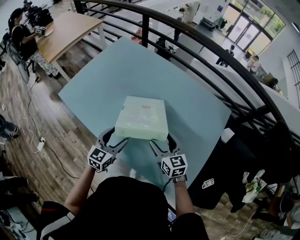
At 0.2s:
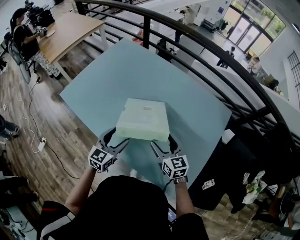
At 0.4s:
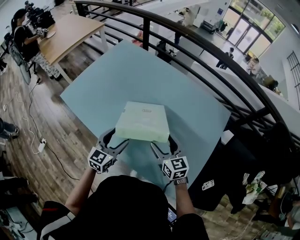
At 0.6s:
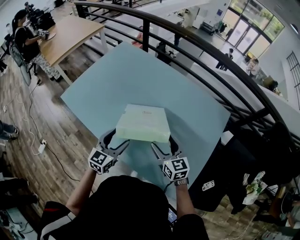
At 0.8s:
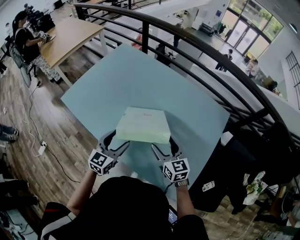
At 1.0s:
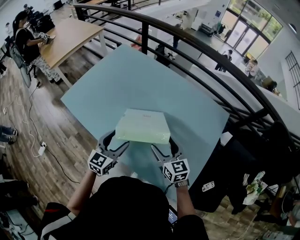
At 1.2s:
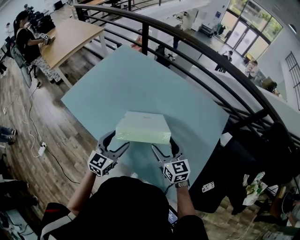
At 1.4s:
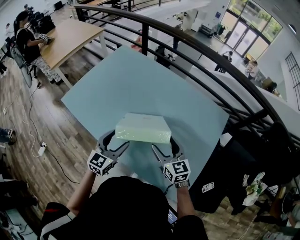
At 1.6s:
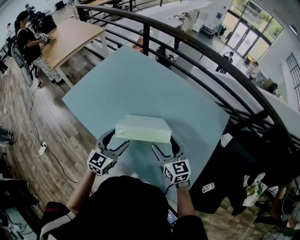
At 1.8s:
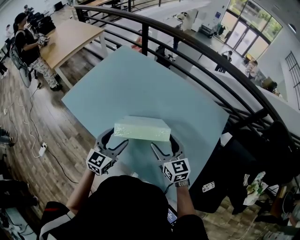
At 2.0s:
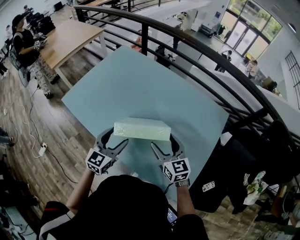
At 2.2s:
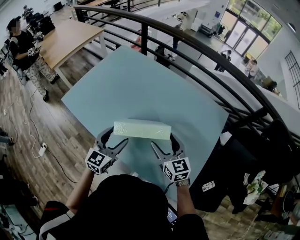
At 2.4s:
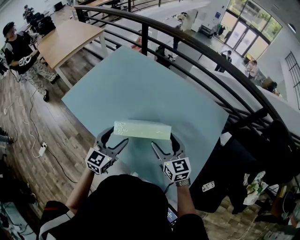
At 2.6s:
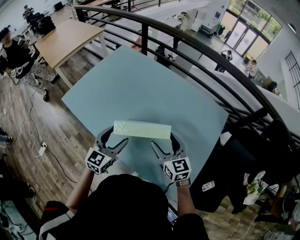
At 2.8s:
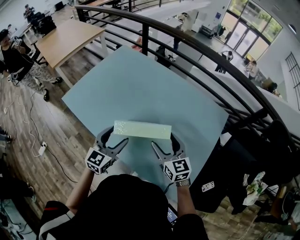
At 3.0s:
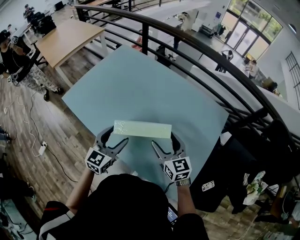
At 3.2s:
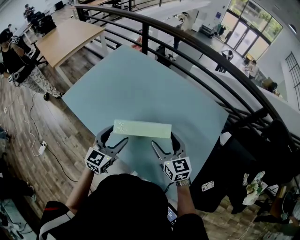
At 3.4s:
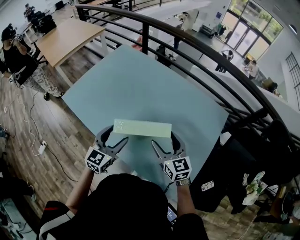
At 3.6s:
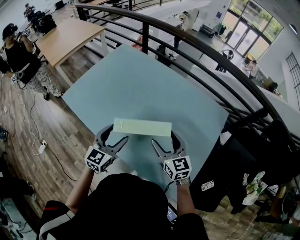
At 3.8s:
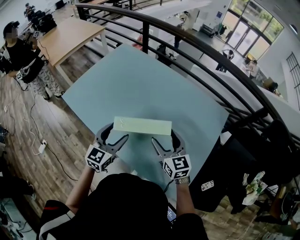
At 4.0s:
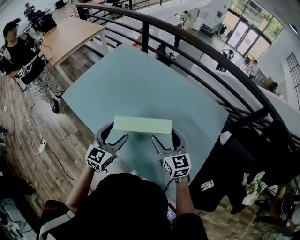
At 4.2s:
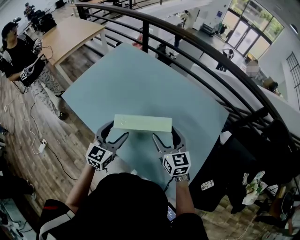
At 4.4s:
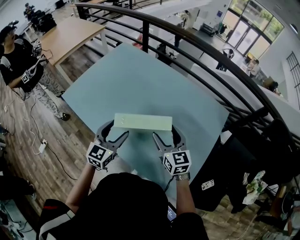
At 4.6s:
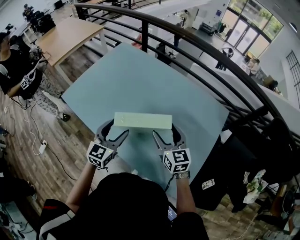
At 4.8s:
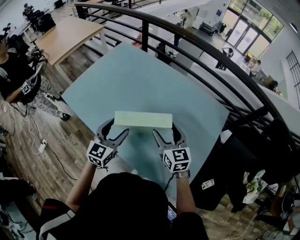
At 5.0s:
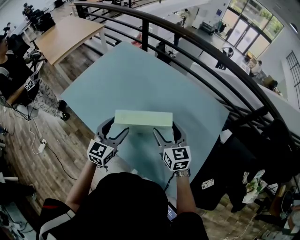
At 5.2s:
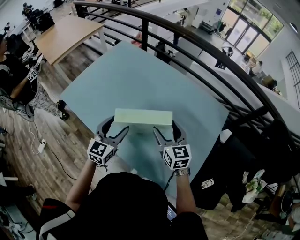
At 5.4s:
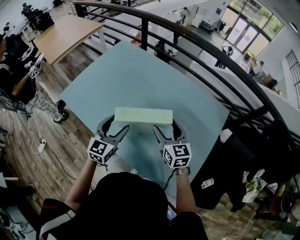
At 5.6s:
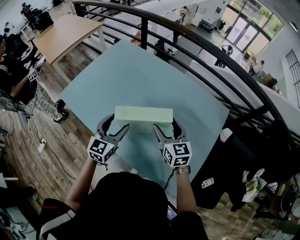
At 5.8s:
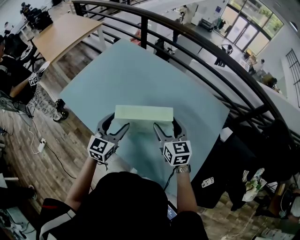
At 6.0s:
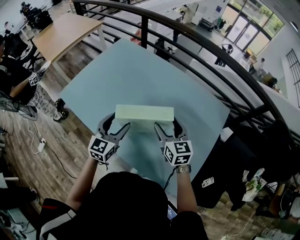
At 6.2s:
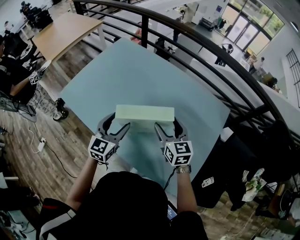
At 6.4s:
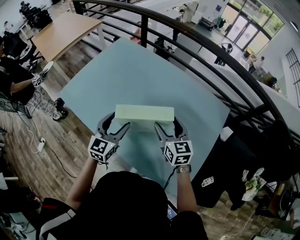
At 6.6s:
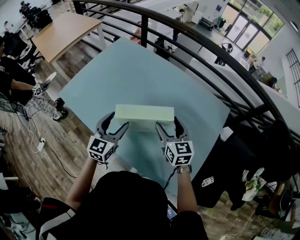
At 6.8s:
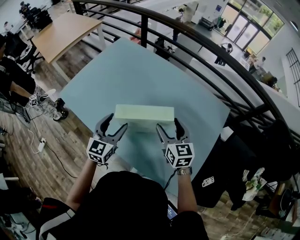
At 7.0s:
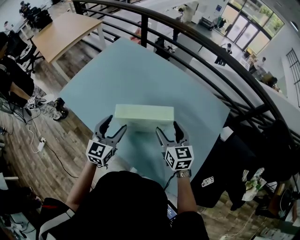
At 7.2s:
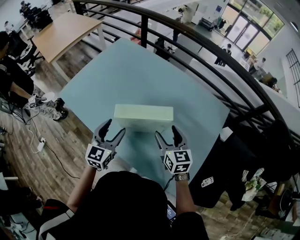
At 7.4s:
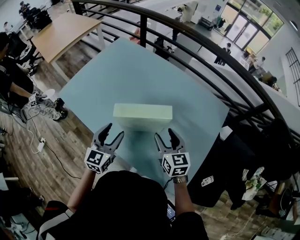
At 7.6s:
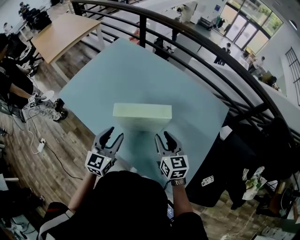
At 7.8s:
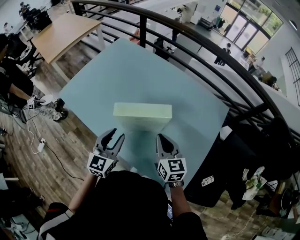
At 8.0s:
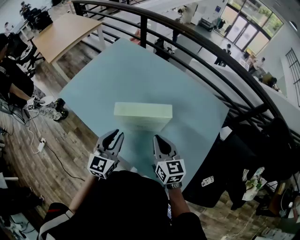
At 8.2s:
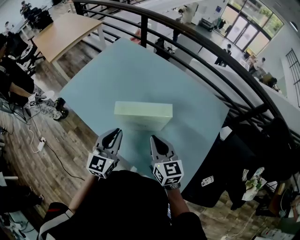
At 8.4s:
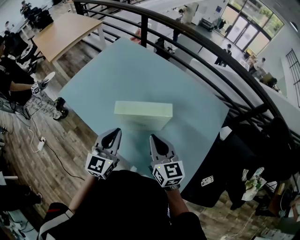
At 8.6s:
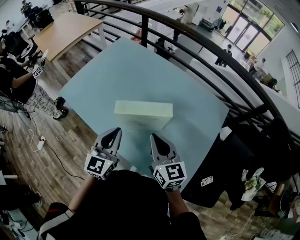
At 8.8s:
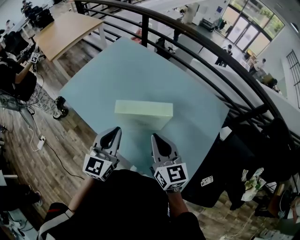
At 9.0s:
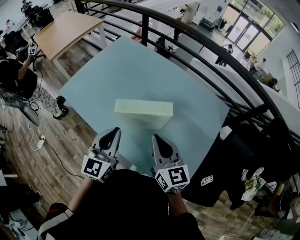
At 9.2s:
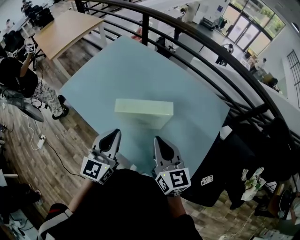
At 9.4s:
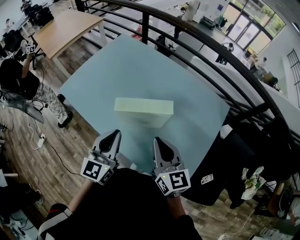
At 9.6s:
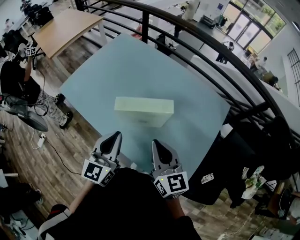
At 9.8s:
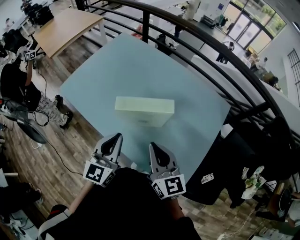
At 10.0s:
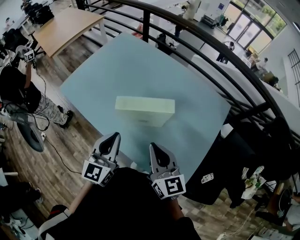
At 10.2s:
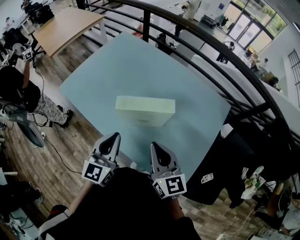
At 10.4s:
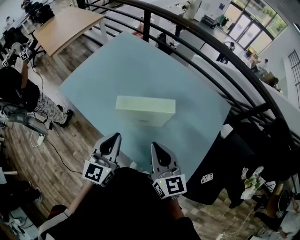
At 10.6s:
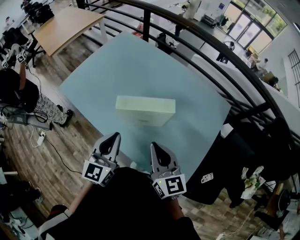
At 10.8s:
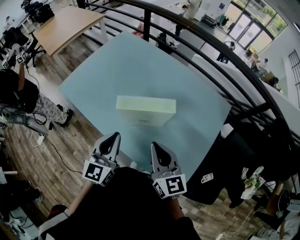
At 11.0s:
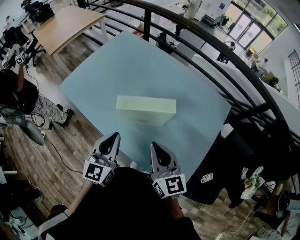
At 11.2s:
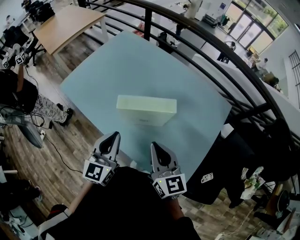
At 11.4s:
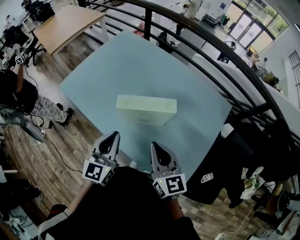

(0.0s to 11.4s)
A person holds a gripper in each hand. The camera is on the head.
0.0s - 1.4s: Both grippers move upward, about 5 cm.
1.4s - 4.2s: The grippers stay close to where they were, moving slightly.
4.2s - 7.2s: The grippers move only a little.
7.2s - 8.6s: The left gripper moves upward, about 5 cm, and closes. The right gripper goes approximately 10 cm upward, to the left and backward, and closes up.
8.6s - 10.0s: The grippers make only small movements.
10.0s - 11.4s: Both grippers stay put.

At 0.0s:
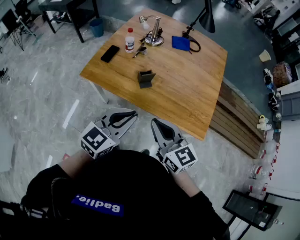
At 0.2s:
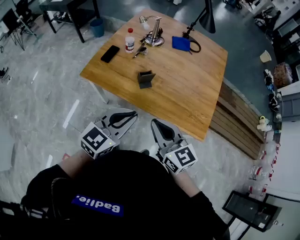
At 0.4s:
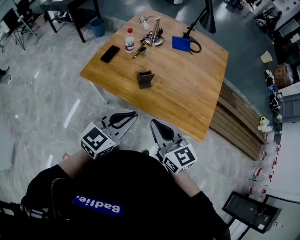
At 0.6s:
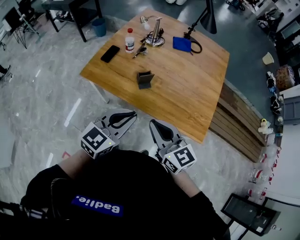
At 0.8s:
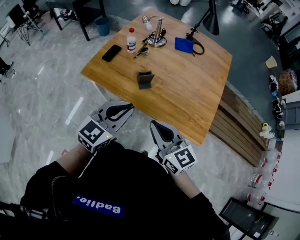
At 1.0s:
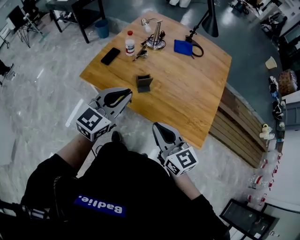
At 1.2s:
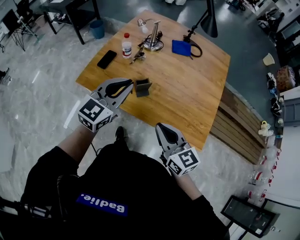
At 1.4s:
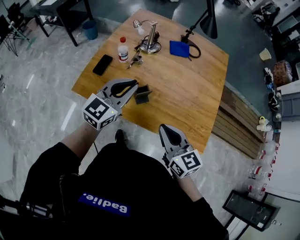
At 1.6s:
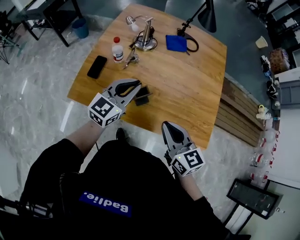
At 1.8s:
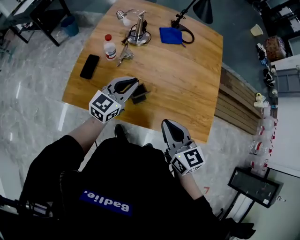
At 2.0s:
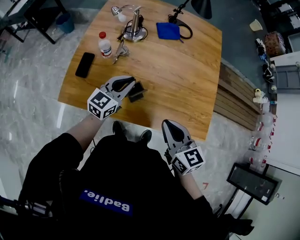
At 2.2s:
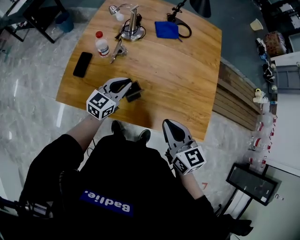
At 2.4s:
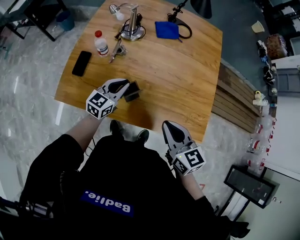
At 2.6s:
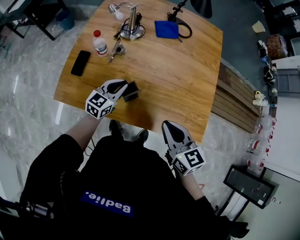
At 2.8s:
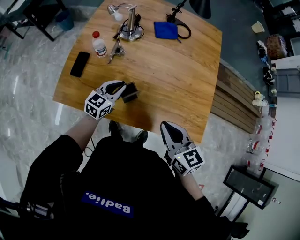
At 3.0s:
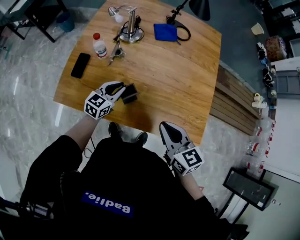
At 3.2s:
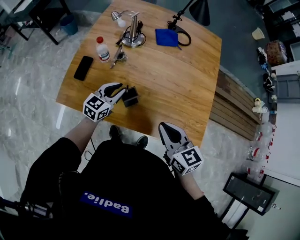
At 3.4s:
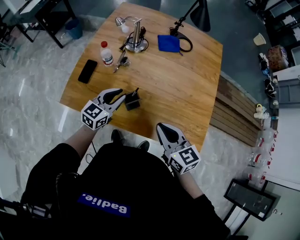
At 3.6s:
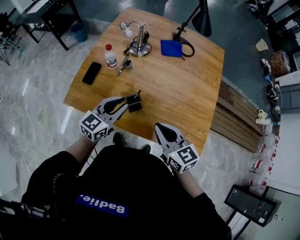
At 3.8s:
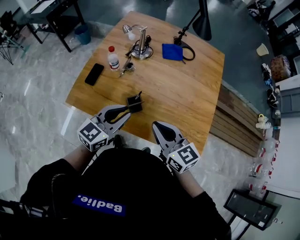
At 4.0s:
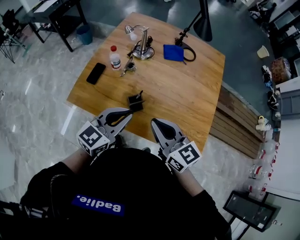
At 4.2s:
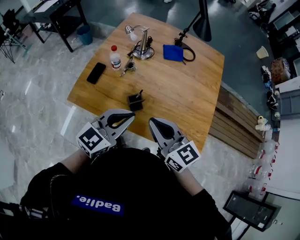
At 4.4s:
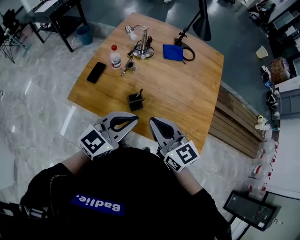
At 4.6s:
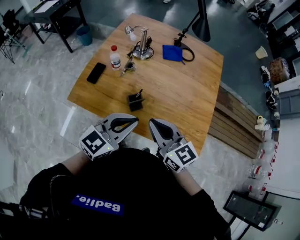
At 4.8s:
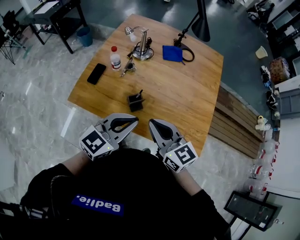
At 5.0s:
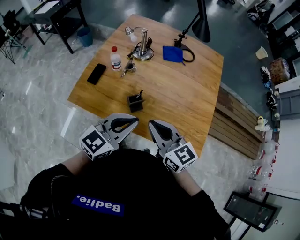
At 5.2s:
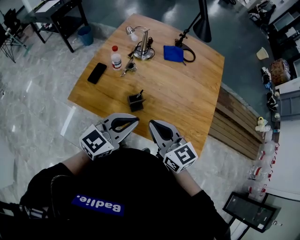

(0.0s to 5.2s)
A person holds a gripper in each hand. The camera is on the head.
0.0s - 1.8s: The left gripper travels forward by about 30 cm. Meanwhile the right gripper heads forward, covering roughly 15 cm, and turns by about 20 degrees.
1.8s - 3.4s: The left gripper moves downward, some 5 cm.
3.4s - 5.2s: The left gripper is displaced upward, backward and to the right by about 20 cm, while the right gripper is displaced upward by some 5 cm.

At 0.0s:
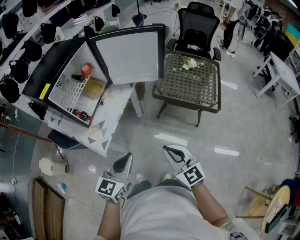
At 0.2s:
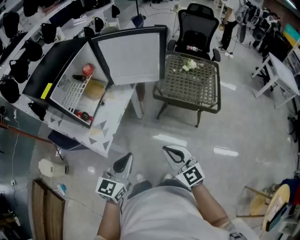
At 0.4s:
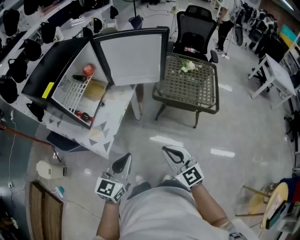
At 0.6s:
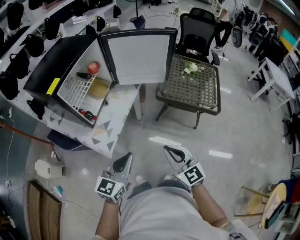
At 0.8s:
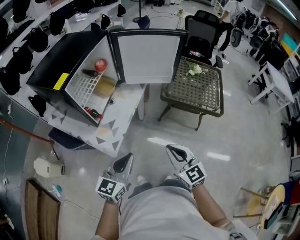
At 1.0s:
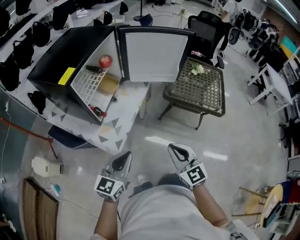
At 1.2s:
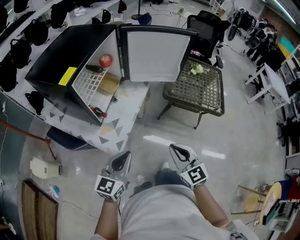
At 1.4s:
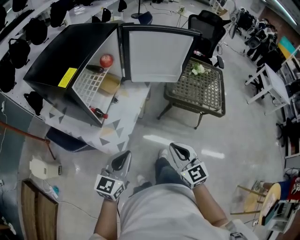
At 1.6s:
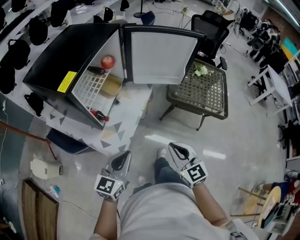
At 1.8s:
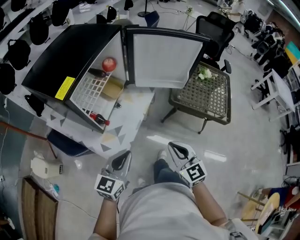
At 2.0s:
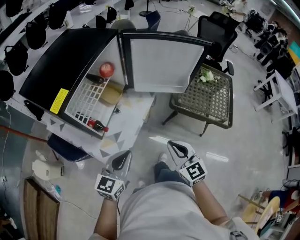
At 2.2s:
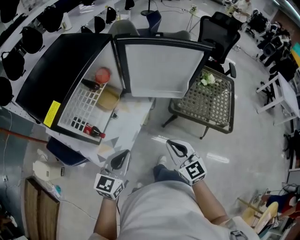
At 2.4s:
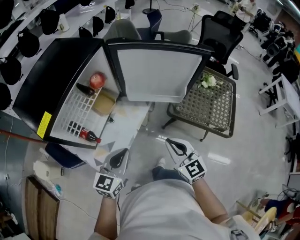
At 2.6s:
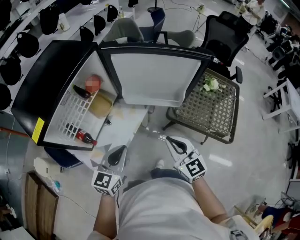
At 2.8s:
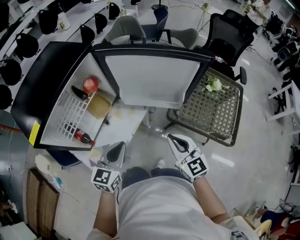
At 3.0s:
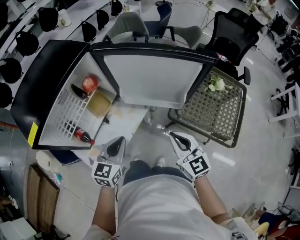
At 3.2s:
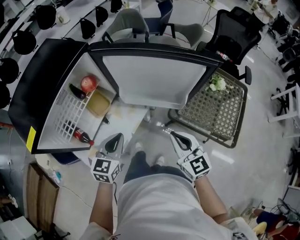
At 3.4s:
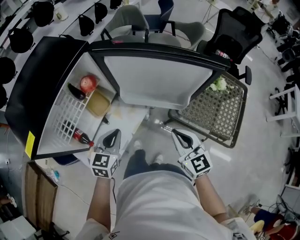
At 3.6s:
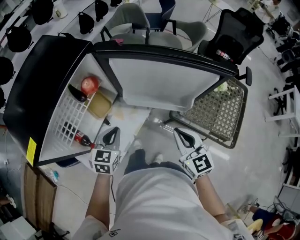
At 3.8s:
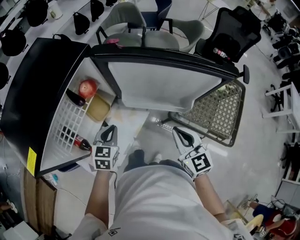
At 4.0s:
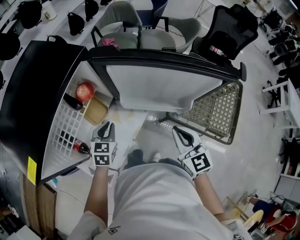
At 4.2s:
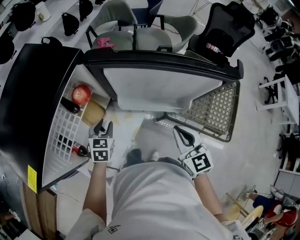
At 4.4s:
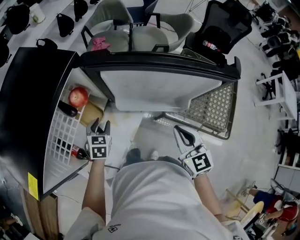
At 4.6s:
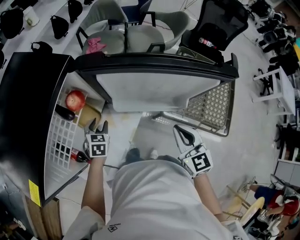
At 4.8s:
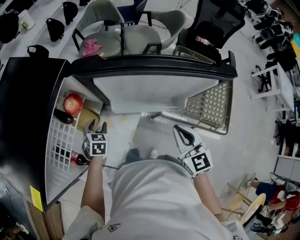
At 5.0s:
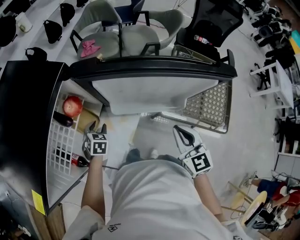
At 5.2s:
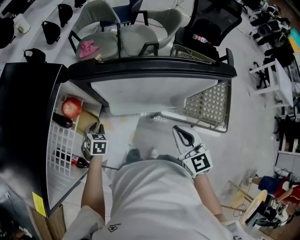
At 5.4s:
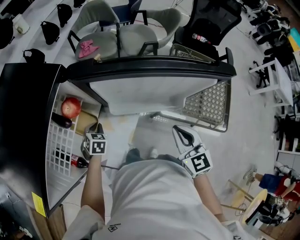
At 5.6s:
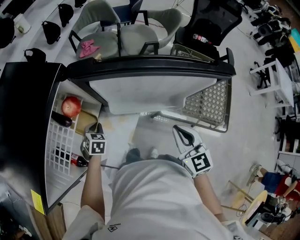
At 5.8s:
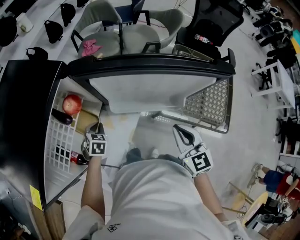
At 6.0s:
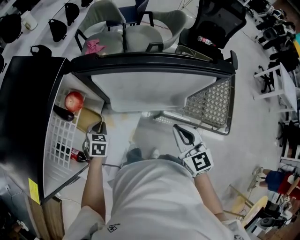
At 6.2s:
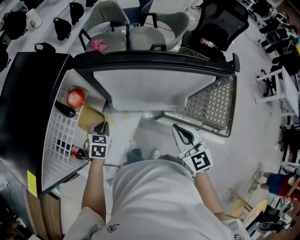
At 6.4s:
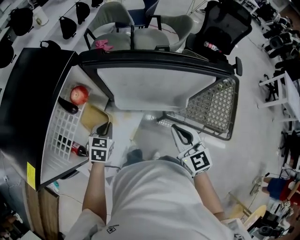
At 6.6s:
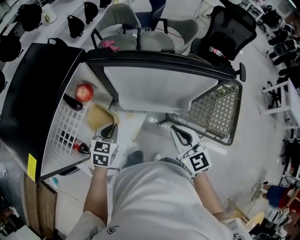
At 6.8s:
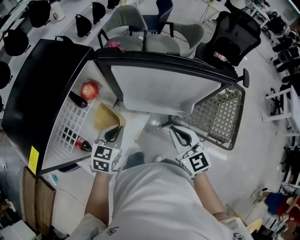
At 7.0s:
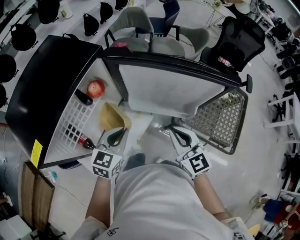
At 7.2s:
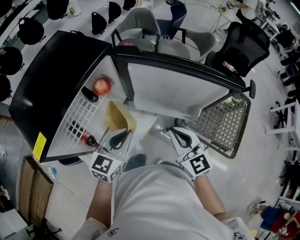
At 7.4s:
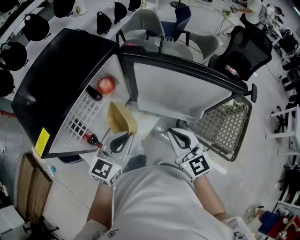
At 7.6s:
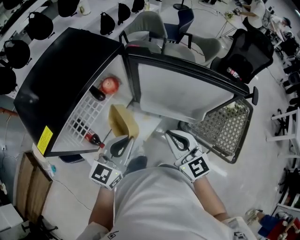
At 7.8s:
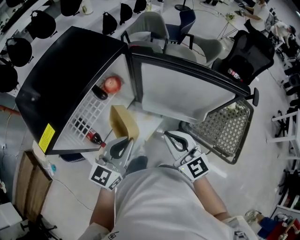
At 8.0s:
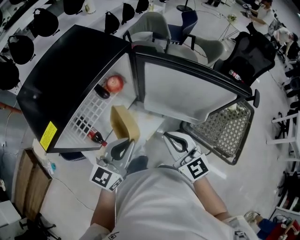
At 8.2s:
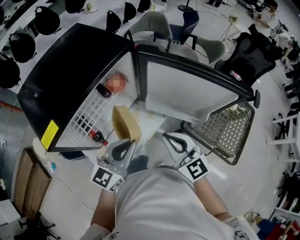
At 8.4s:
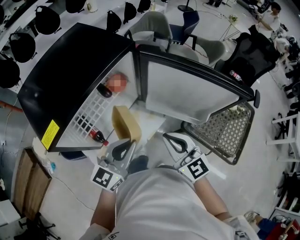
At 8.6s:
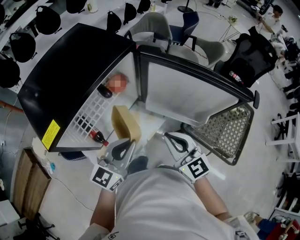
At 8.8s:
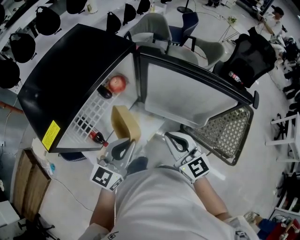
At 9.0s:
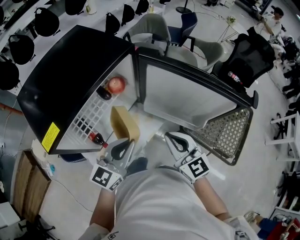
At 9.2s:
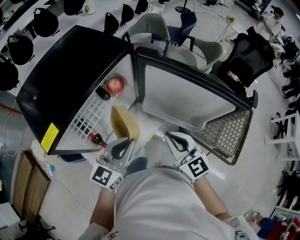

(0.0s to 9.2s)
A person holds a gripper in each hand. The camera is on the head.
0.0s - 1.6s: The left gripper moves to the left, about 20 cm. The right gripper shifts some 15 cm to the left and forward.
1.6s - 3.0s: Both grippers travel together forward and to the right, about 30 cm.
3.0s - 4.6s: The right gripper heads forward, covering some 10 cm. Meanwhile the left gripper goes some 25 cm forward, downward and to the left, rotates roughly 30 degrees, and opens its fingers.
4.6s - 6.2s: The left gripper closes its fingers.
6.2s - 7.6s: The left gripper goes approximately 25 cm upward and backward, and points its fingers roughly 40 degrees further upward, while the right gripper goes roughly 10 cm to the left and upward, and rotates about 20 degrees.
7.6s - 9.2s: The grippers stay close to where they were, moving slightly.
